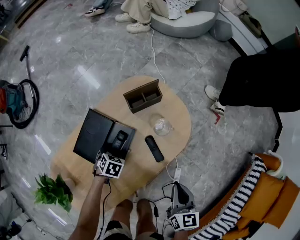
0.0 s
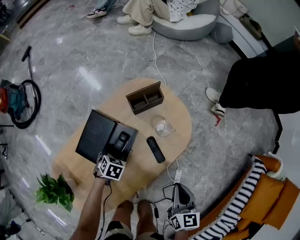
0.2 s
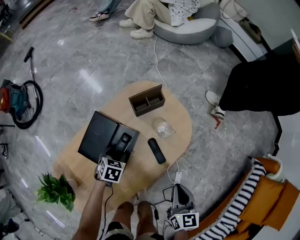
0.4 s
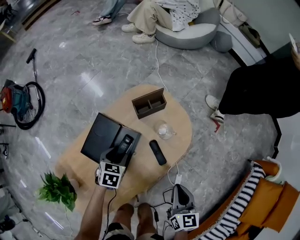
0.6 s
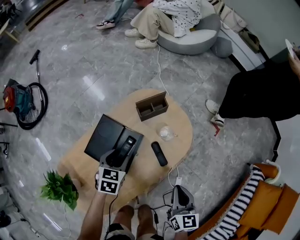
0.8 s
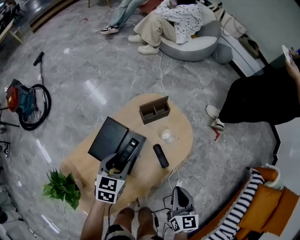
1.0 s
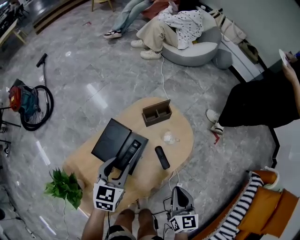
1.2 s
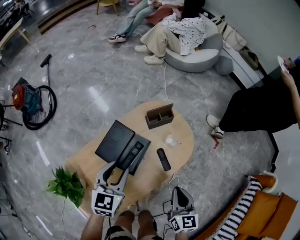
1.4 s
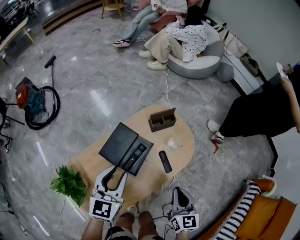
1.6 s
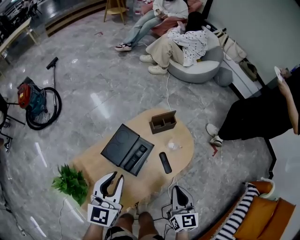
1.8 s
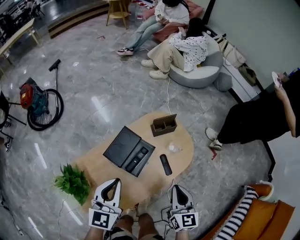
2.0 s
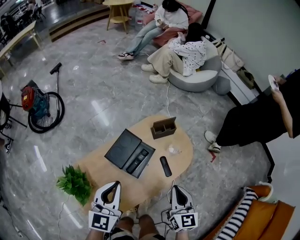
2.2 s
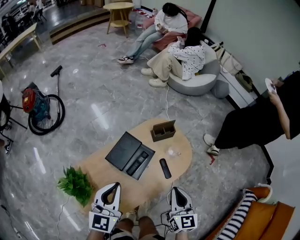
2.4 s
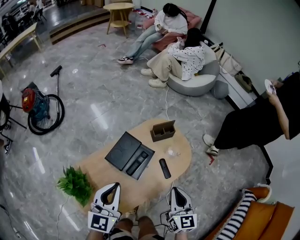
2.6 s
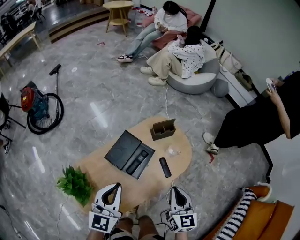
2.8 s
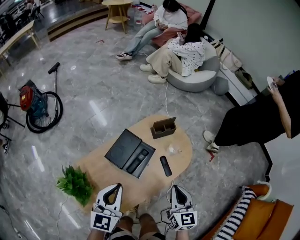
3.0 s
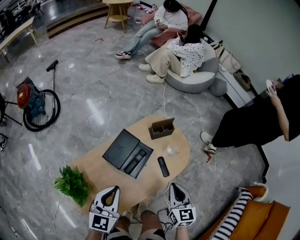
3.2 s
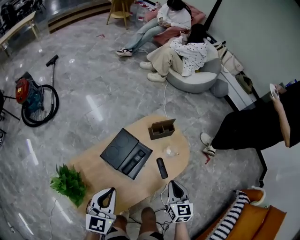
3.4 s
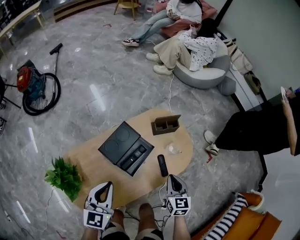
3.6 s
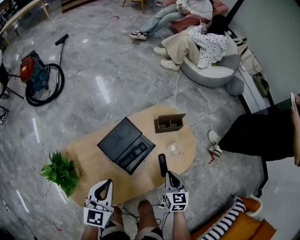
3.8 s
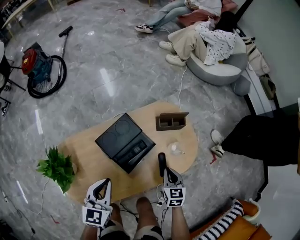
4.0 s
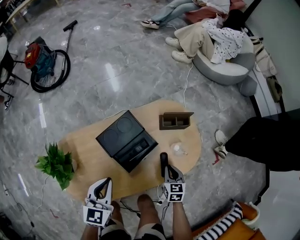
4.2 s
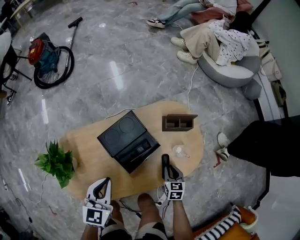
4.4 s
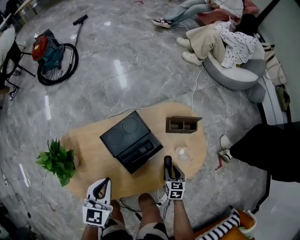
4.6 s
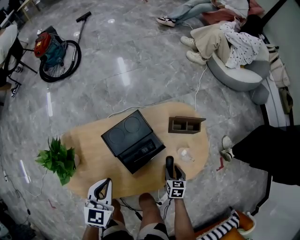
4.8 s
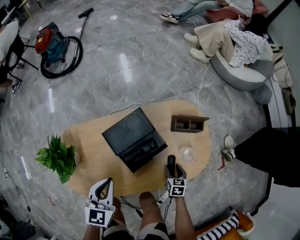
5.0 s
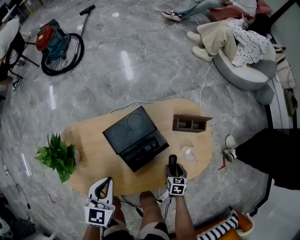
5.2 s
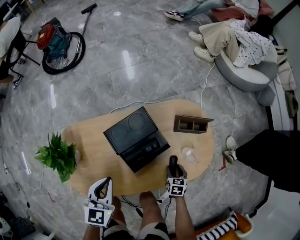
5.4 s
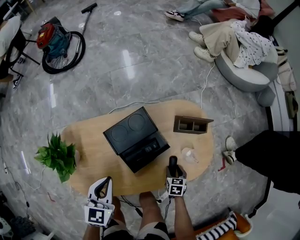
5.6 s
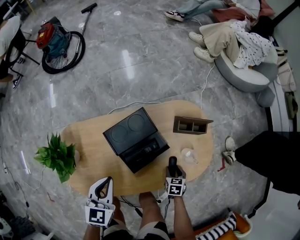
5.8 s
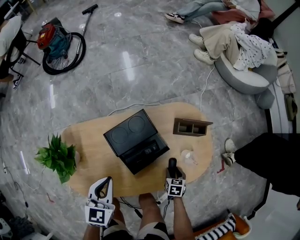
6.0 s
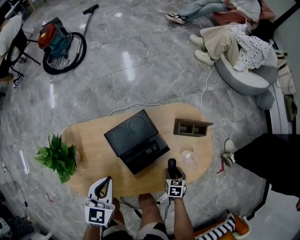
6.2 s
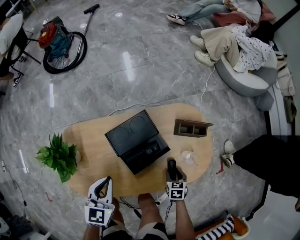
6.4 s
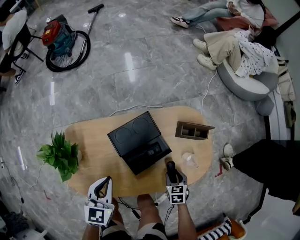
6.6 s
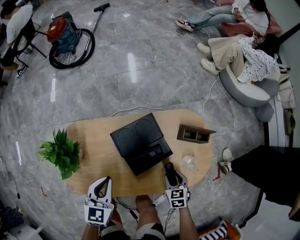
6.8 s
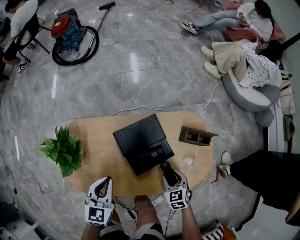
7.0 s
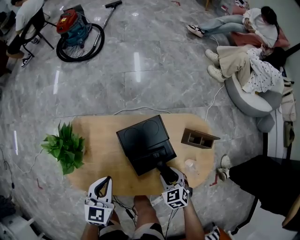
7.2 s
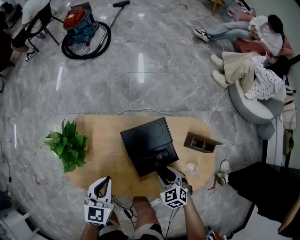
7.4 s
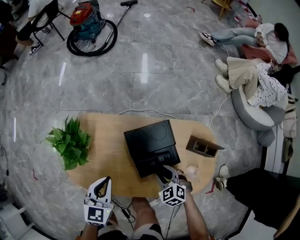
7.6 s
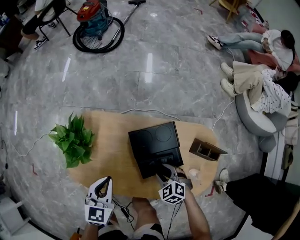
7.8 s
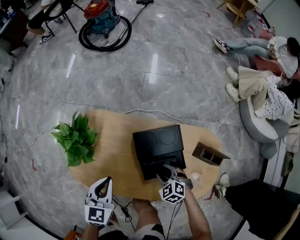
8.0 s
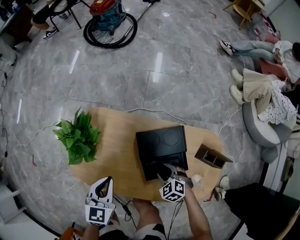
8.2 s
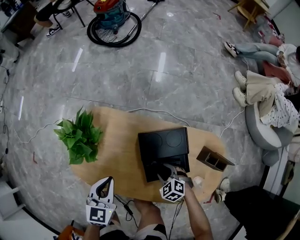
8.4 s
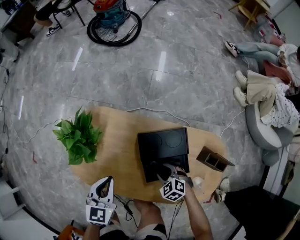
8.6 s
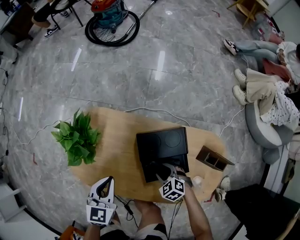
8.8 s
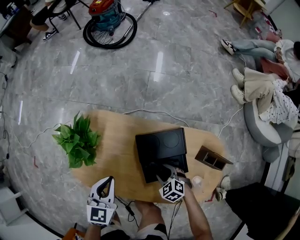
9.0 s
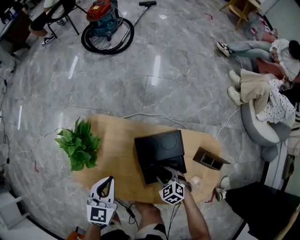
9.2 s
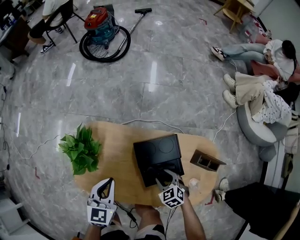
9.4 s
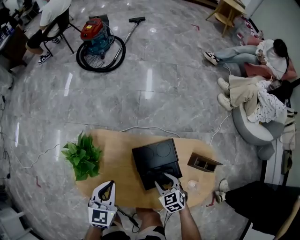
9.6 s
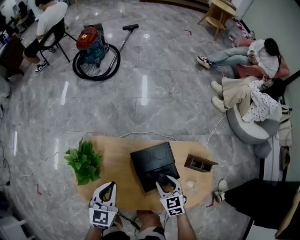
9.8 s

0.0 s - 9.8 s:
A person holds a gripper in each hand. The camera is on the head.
0.0 s - 1.4 s: The right gripper travels upward by some 10 cm, while the left gripper goes about 35 cm upward, and points its fingers roughly 50 degrees further upward.
1.4 s - 2.8 s: The right gripper heads upward, covering about 10 cm. Meanwhile the left gripper goes roughly 15 cm backward and upward, and closes up.
2.8 s - 4.2 s: The right gripper shifts approximately 30 cm downward and forward, and rotates roughly 30 degrees; the left gripper shifts about 15 cm downward, and swivels some 20 degrees.
4.2 s - 5.6 s: The right gripper travels downward by approximately 10 cm, and opens up.
5.6 s - 7.0 s: The right gripper is displaced upward and to the left by approximately 15 cm, and swivels about 40 degrees.
7.0 s - 8.4 s: The right gripper moves roughly 15 cm, and rolls counterclockwise, seen from behind, by some 40 degrees. Meanwhile the left gripper moves roughly 5 cm.
8.4 s - 9.8 s: The right gripper is displaced upward by approximately 15 cm, and rotates approximately 50 degrees, while the left gripper heads upward, covering roughly 10 cm.

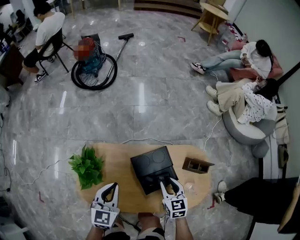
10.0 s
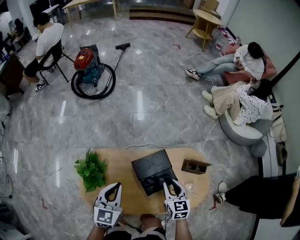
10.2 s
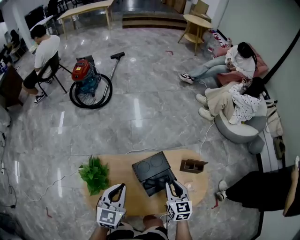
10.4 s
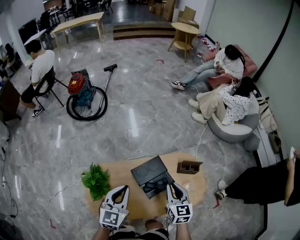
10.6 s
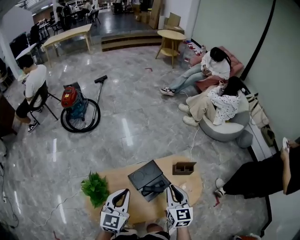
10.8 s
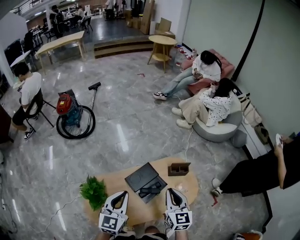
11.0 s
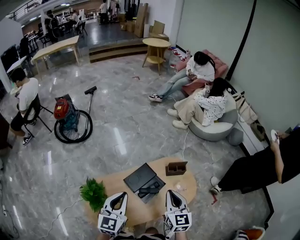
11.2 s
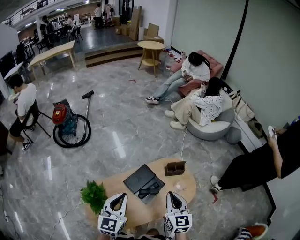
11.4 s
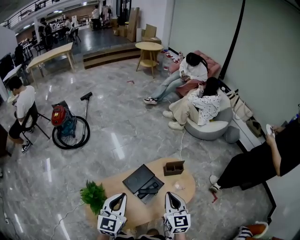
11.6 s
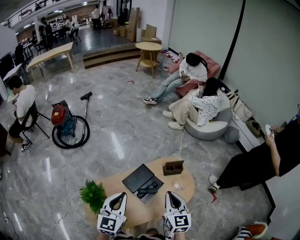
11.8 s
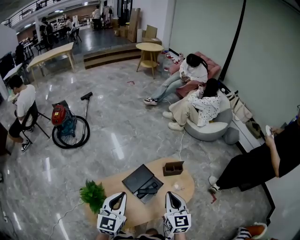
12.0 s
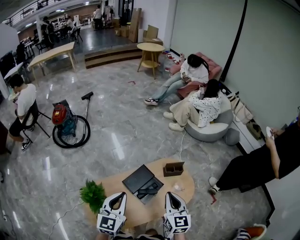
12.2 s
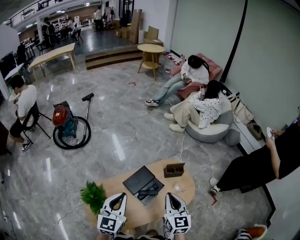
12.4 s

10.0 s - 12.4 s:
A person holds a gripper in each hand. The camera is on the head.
10.0 s - 11.2 s: Both grippers move upward, roughly 25 cm. The left gripper turns by approximately 30 degrees. The right gripper changes its angle by about 30 degrees, and closes.
11.2 s - 12.4 s: There are only small adjustments of the grippers.

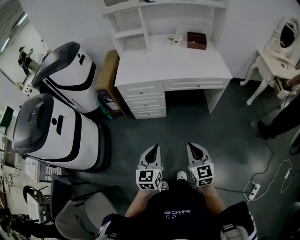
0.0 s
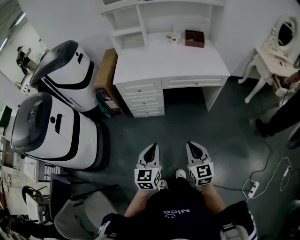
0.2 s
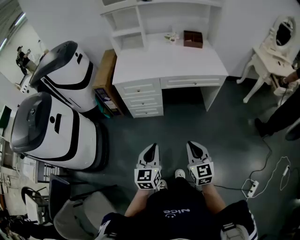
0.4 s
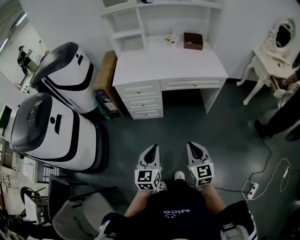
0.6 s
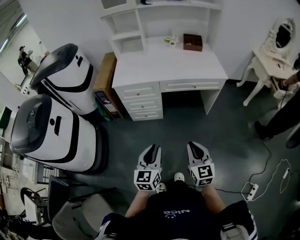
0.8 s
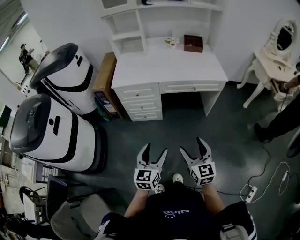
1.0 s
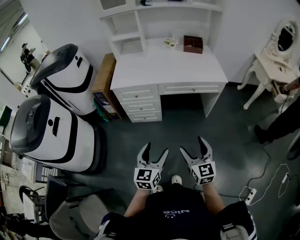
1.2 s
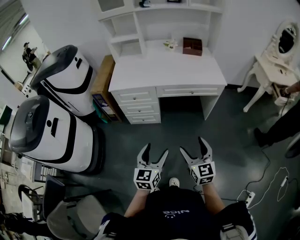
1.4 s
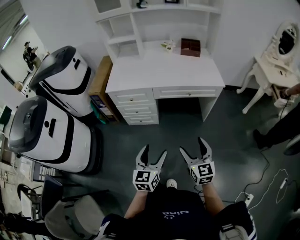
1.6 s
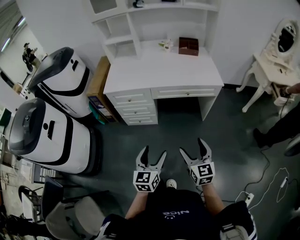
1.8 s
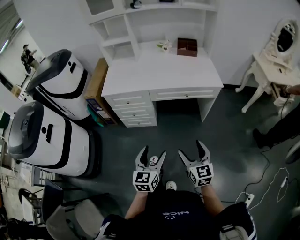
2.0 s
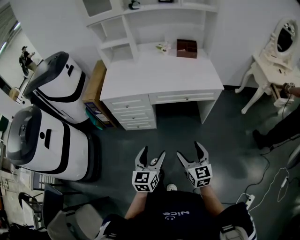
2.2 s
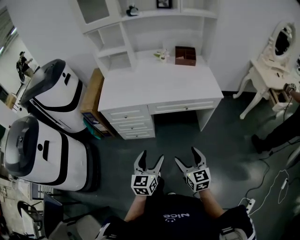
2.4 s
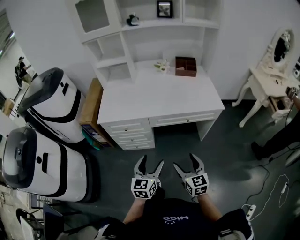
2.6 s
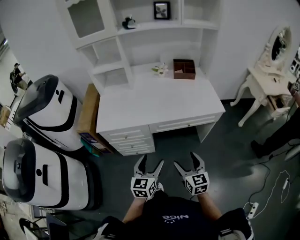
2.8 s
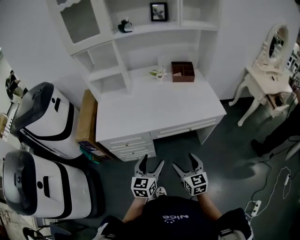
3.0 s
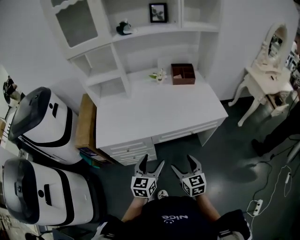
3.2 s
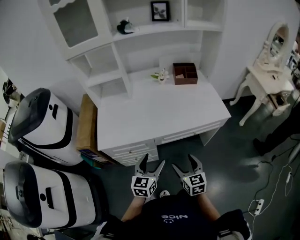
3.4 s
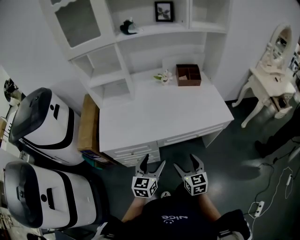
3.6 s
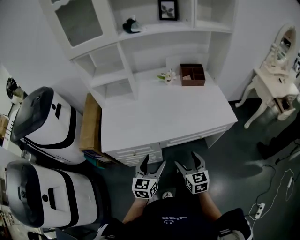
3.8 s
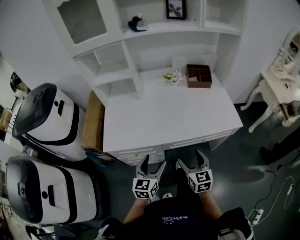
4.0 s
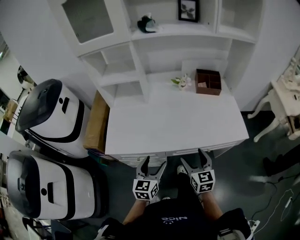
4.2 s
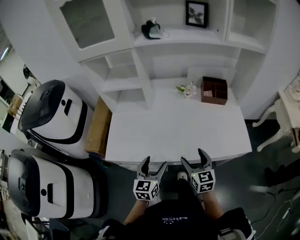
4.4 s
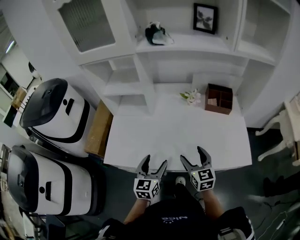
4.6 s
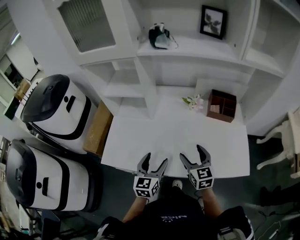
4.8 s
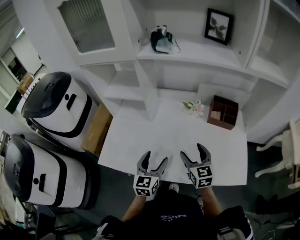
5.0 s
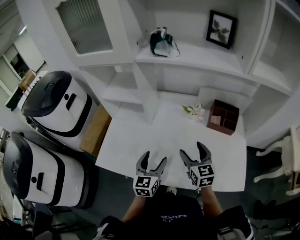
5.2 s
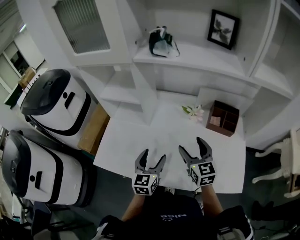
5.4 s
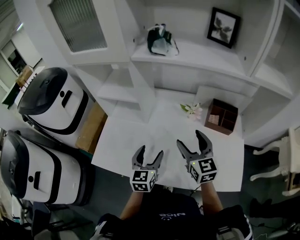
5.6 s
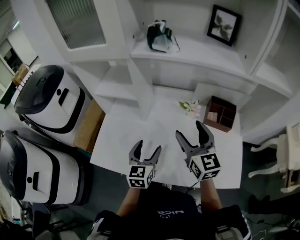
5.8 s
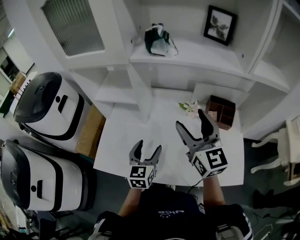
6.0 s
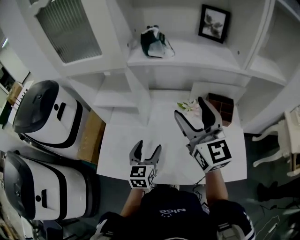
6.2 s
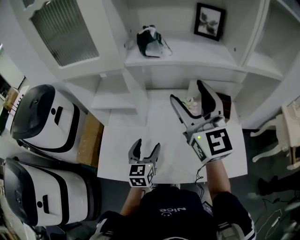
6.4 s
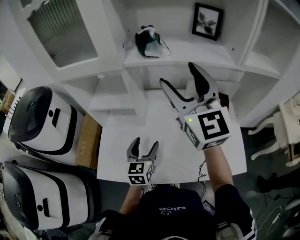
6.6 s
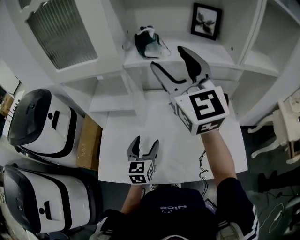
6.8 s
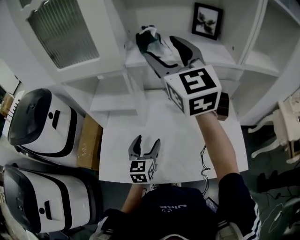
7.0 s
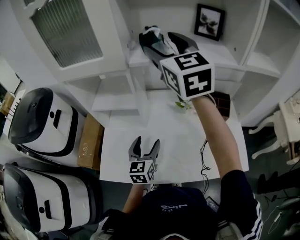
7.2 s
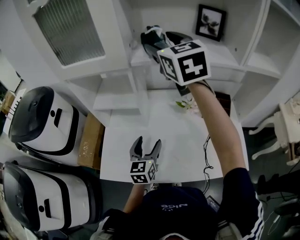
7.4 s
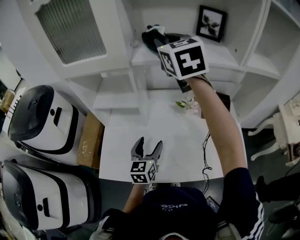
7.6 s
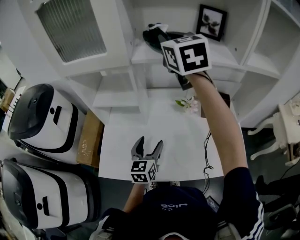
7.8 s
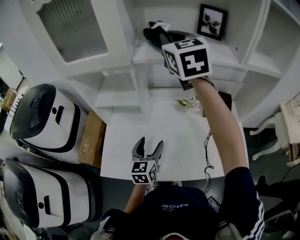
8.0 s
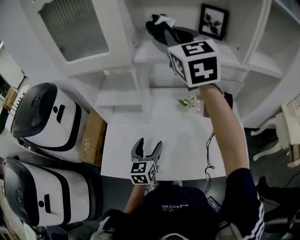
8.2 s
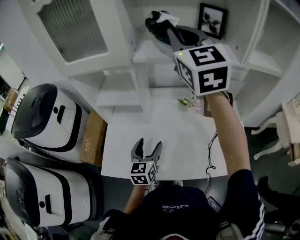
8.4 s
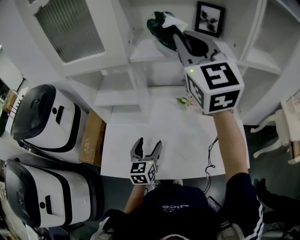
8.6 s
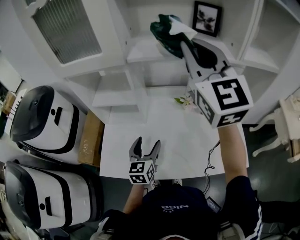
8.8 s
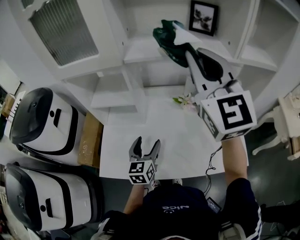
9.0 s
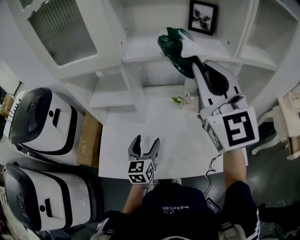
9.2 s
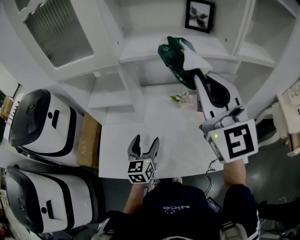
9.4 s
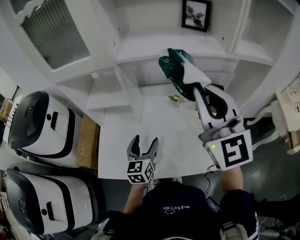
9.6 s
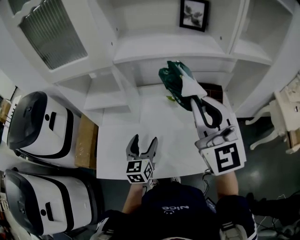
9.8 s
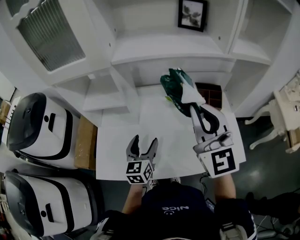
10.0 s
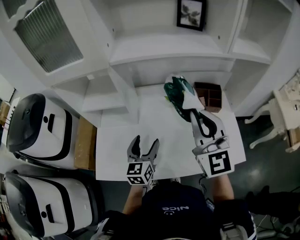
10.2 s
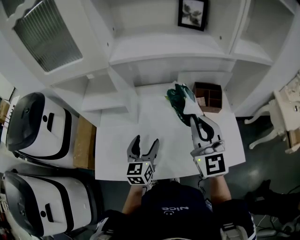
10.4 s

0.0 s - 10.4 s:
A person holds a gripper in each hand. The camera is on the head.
0.0 s - 1.4 s: The grippers both shift to the right by some 5 cm. The left gripper opens, while the right gripper opens up.
1.4 s - 3.0 s: Both grippers travel together forward, roughly 25 cm.
3.0 s - 4.4 s: The grippers both shift forward by roughly 25 cm.
4.4 s - 6.0 s: The left gripper heads forward, covering about 20 cm. Meanwhile the right gripper travels upward and forward by approximately 35 cm, and swivels about 30 degrees.
6.0 s - 7.4 s: The right gripper travels upward, forward and to the left by approximately 25 cm.
7.4 s - 9.0 s: The right gripper is displaced backward and to the right by about 15 cm, and closes.
9.0 s - 10.4 s: The right gripper is displaced downward by some 20 cm.

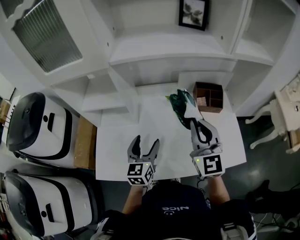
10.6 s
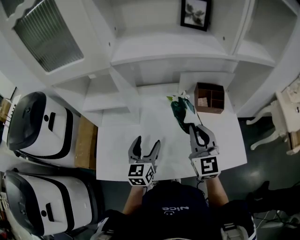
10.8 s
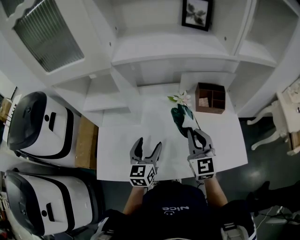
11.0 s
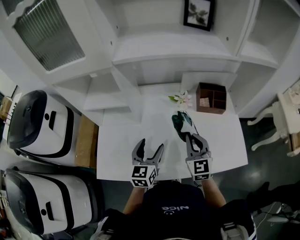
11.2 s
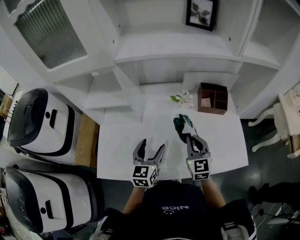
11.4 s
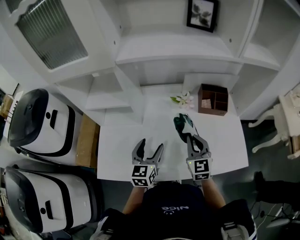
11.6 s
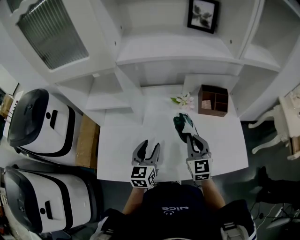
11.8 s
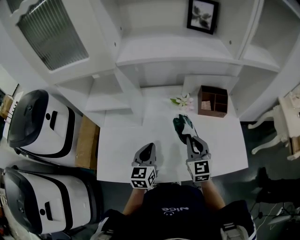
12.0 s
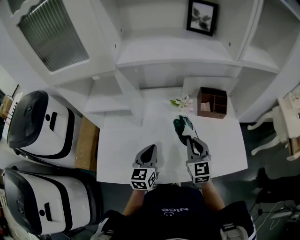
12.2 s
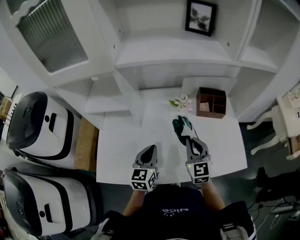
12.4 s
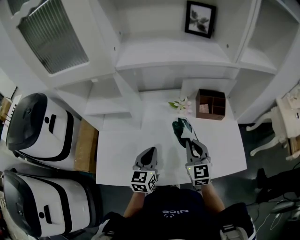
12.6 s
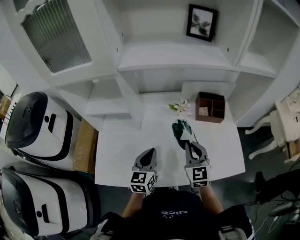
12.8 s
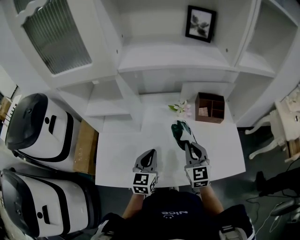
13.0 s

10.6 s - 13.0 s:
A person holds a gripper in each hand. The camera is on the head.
10.6 s - 11.8 s: The right gripper heads downward, covering approximately 15 cm.
11.8 s - 13.0 s: The left gripper closes.
